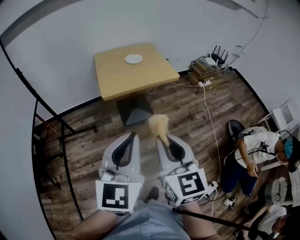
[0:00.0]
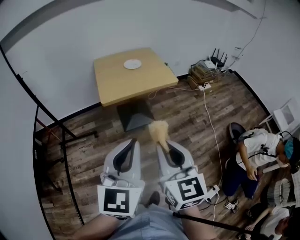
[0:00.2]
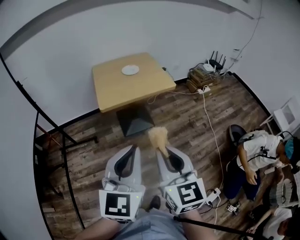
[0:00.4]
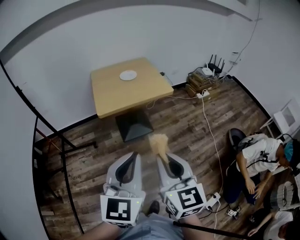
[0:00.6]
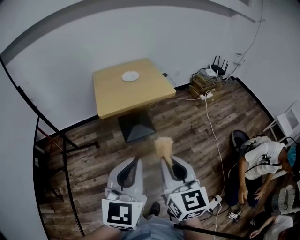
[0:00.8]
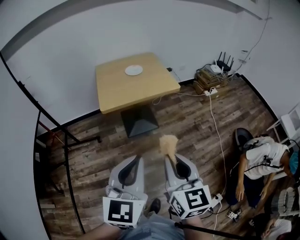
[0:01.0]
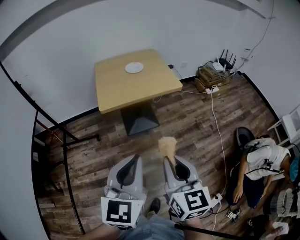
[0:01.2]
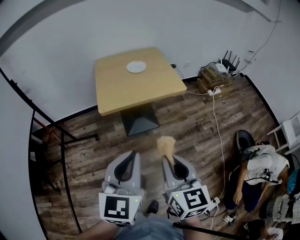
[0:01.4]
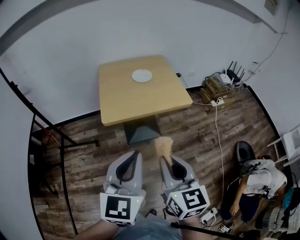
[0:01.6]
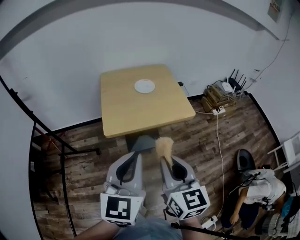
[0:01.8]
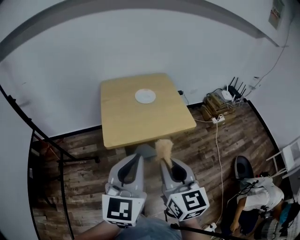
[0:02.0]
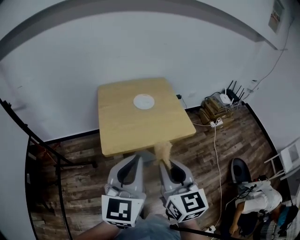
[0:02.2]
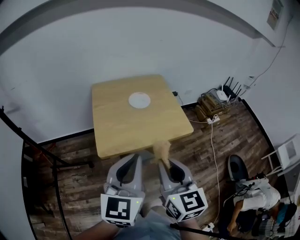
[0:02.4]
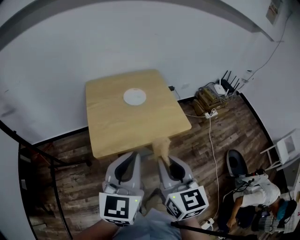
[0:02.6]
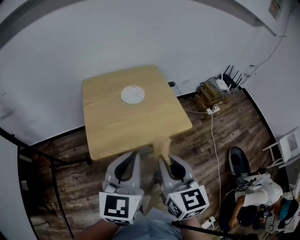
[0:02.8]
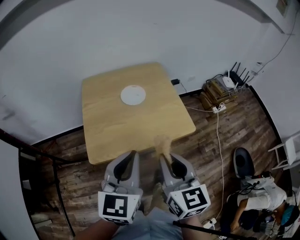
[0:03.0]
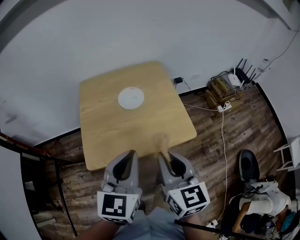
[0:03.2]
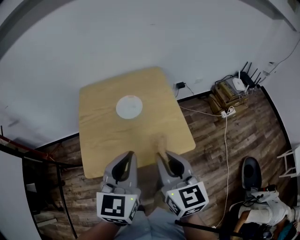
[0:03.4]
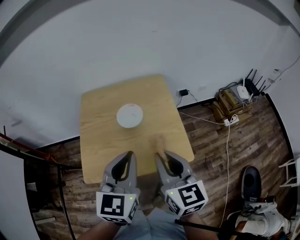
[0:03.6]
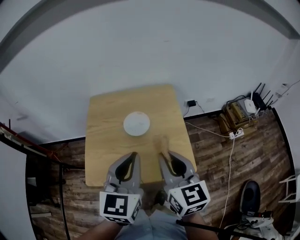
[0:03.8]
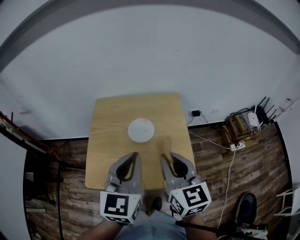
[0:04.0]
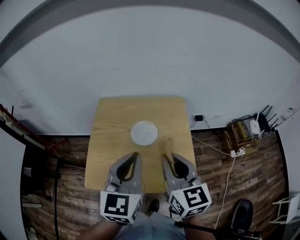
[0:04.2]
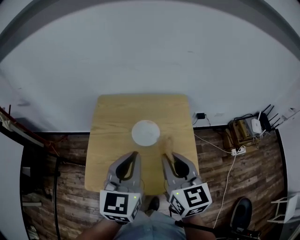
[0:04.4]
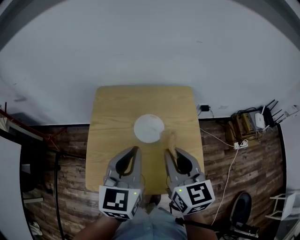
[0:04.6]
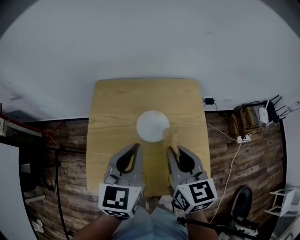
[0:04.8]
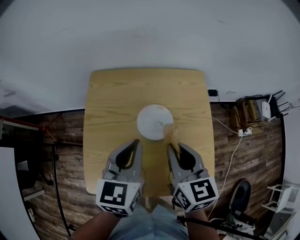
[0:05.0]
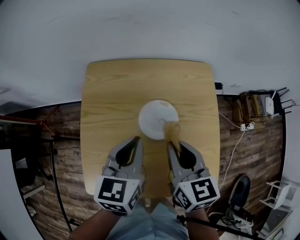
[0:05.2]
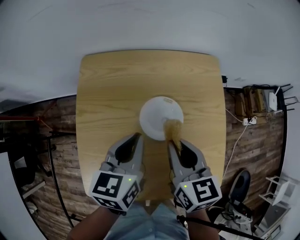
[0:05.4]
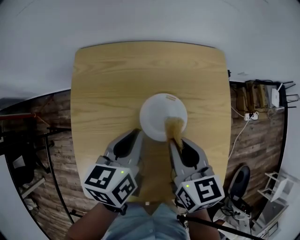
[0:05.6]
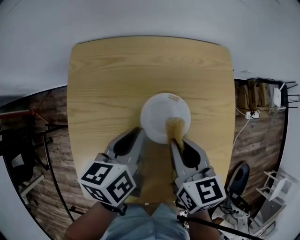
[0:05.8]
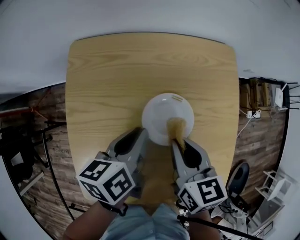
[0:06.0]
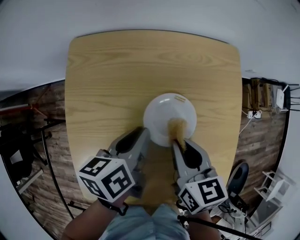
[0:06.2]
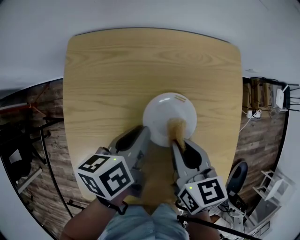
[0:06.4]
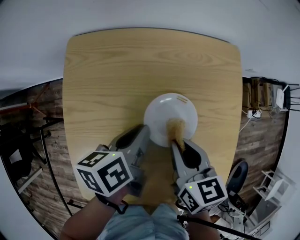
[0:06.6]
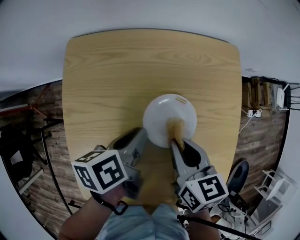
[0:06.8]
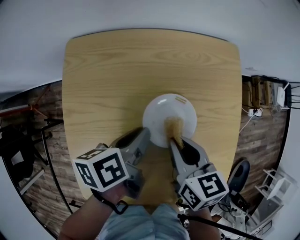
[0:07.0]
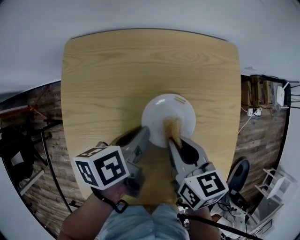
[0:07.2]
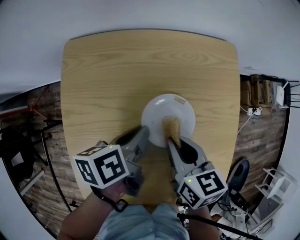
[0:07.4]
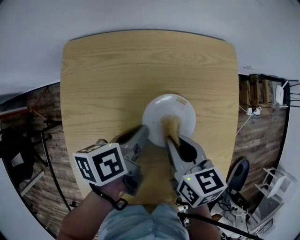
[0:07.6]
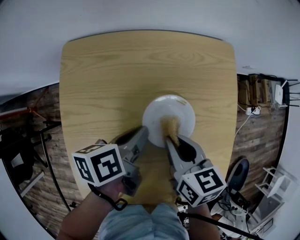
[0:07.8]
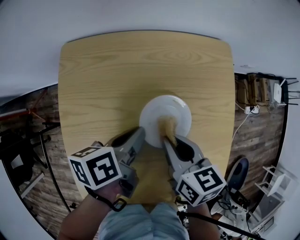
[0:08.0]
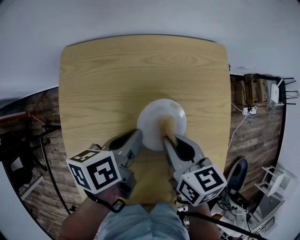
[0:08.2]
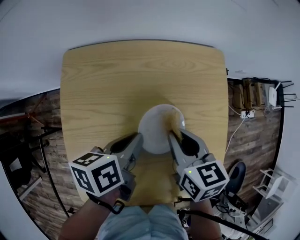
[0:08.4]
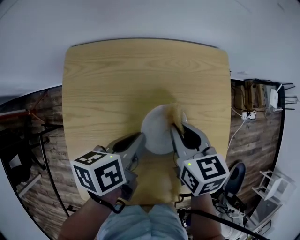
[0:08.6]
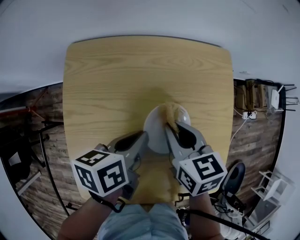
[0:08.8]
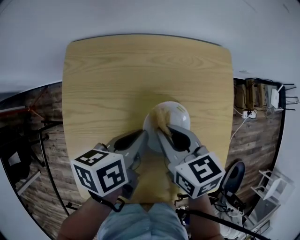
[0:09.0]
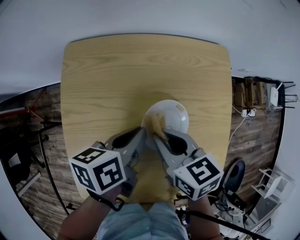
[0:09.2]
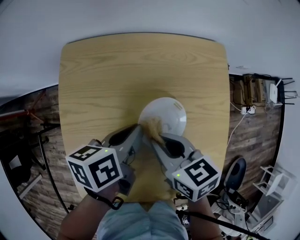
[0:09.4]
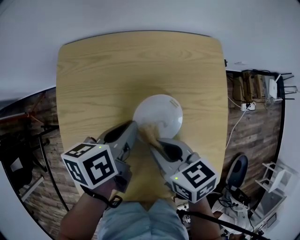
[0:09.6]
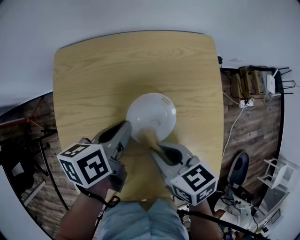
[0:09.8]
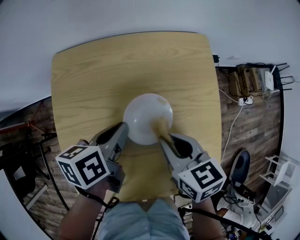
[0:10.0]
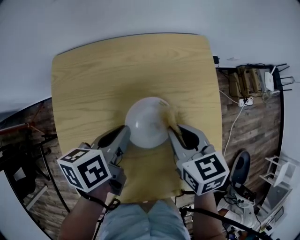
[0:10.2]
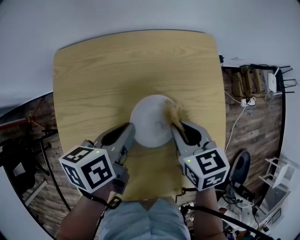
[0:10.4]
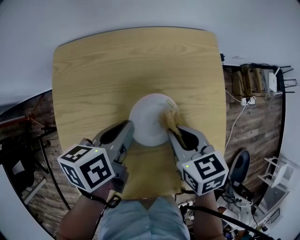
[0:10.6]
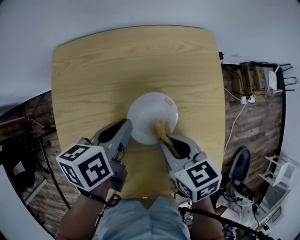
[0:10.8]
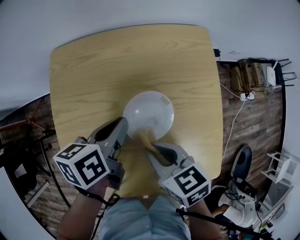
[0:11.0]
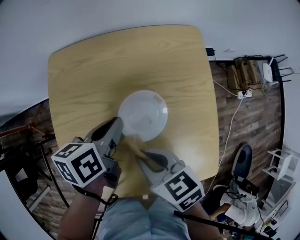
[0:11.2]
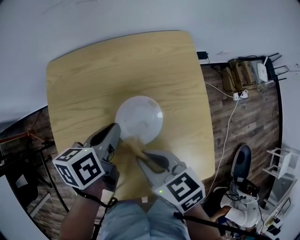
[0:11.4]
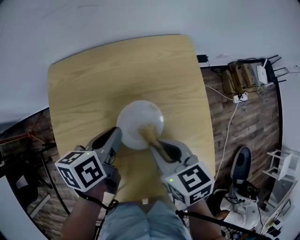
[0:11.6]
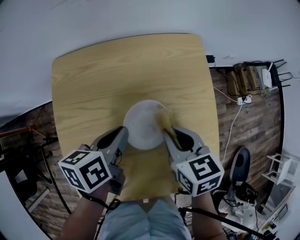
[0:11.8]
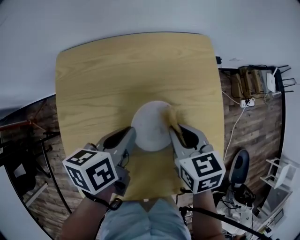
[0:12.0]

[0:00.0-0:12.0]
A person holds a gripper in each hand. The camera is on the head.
0:00.0 to 0:01.6: The two grippers go approximately 15 cm forward.
0:01.6 to 0:03.0: The two grippers go roughly 25 cm forward.
0:03.0 to 0:04.4: Both grippers travel together forward, some 25 cm.
0:04.4 to 0:06.0: The two grippers go some 25 cm downward and forward. The left gripper rotates around the line of its fingers by some 40 degrees, counterclockwise from behind; the right gripper changes its angle by some 30 degrees.
0:06.0 to 0:09.0: There are only small adjustments of the grippers.
0:09.0 to 0:10.4: The right gripper is displaced to the right by some 10 cm.
0:10.4 to 0:12.0: The right gripper moves about 10 cm backward and comes back.

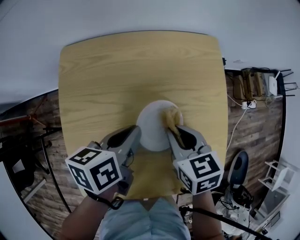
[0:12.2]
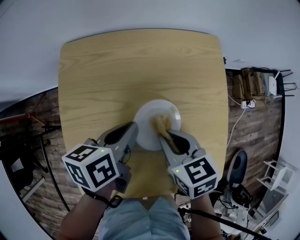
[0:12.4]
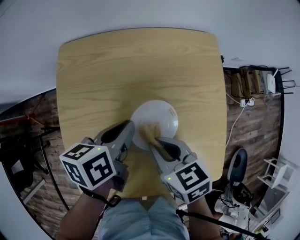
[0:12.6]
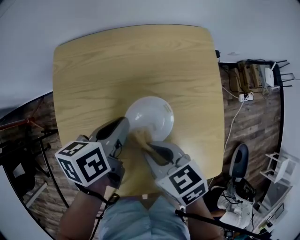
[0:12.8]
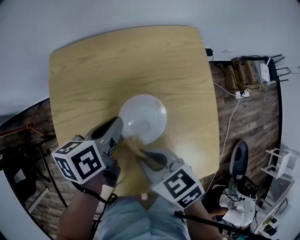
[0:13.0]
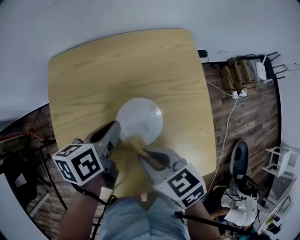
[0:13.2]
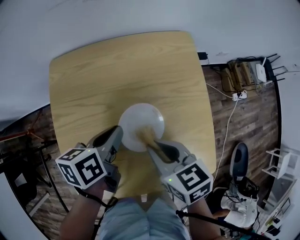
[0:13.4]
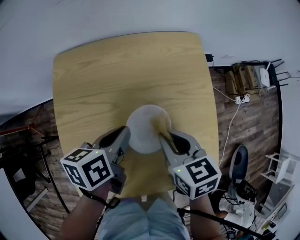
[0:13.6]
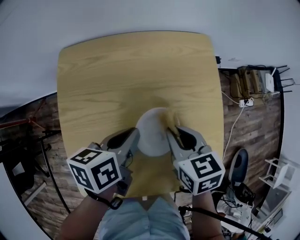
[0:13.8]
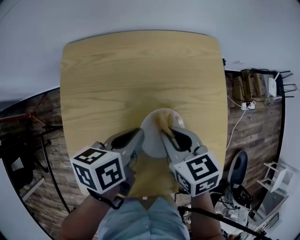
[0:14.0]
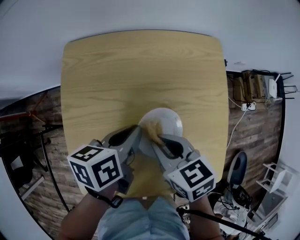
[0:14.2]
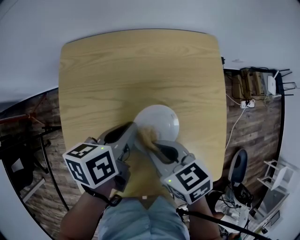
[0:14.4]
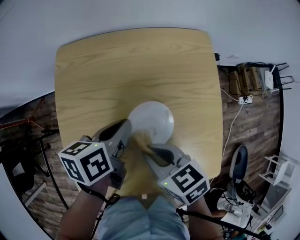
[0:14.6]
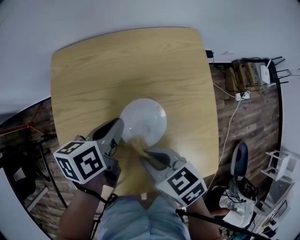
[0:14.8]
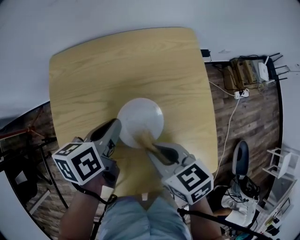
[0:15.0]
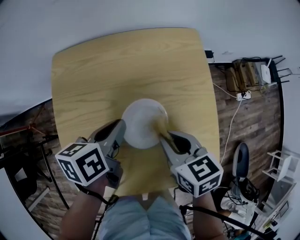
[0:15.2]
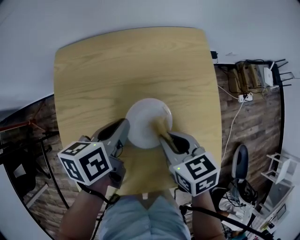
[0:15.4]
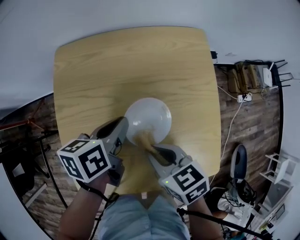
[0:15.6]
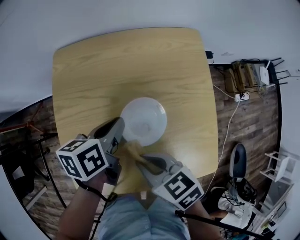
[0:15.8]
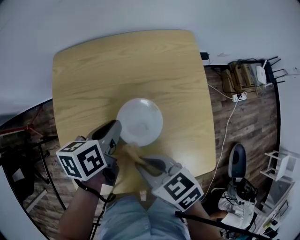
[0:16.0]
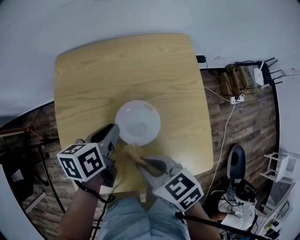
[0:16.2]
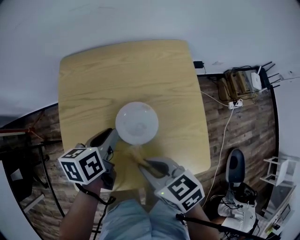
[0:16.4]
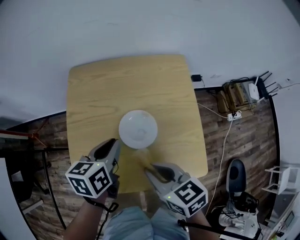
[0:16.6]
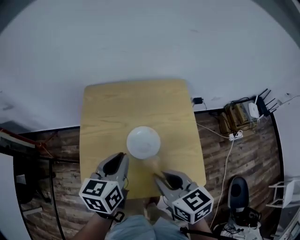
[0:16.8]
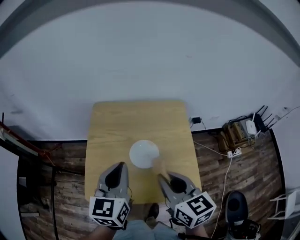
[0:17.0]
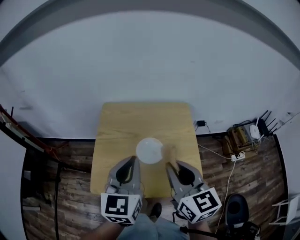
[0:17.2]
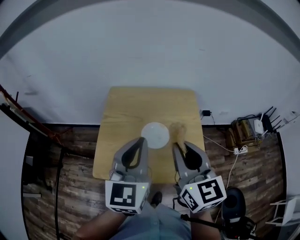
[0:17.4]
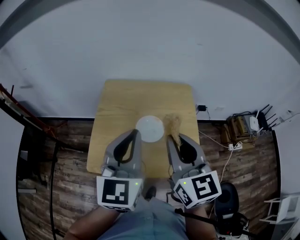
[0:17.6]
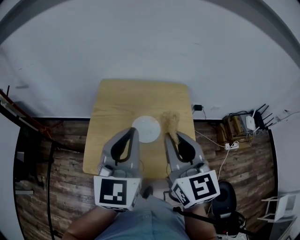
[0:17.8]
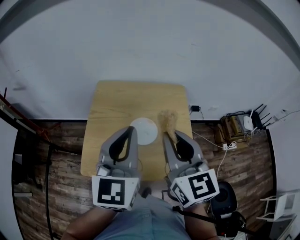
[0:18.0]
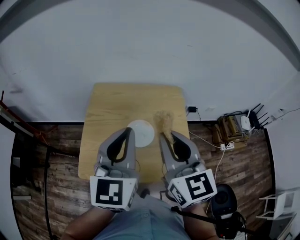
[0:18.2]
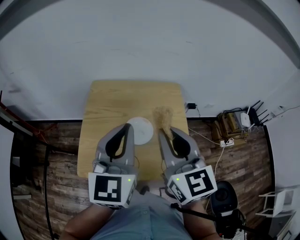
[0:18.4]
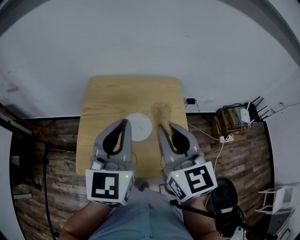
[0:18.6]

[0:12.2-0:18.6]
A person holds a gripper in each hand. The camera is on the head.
0:12.2 to 0:13.8: The right gripper travels backward and back again, some 10 cm each way.
0:15.4 to 0:17.0: The grippers both shift upward and backward by approximately 20 cm. The left gripper rotates roughly 50 degrees, while the right gripper turns by roughly 30 degrees.
0:17.0 to 0:18.6: Both grippers travel together upward, about 10 cm. The right gripper changes its angle by approximately 20 degrees.

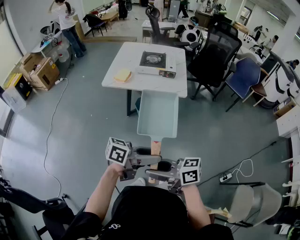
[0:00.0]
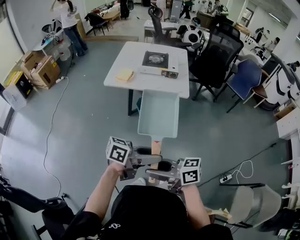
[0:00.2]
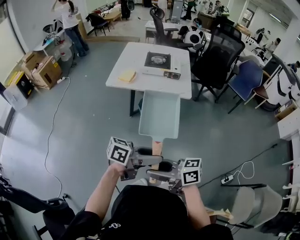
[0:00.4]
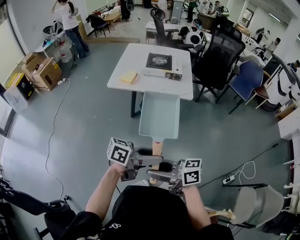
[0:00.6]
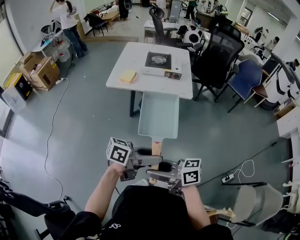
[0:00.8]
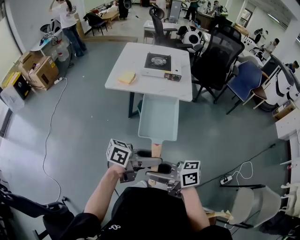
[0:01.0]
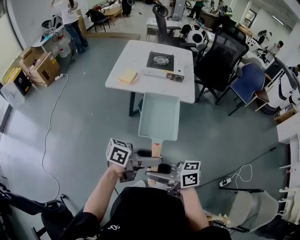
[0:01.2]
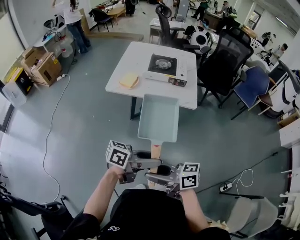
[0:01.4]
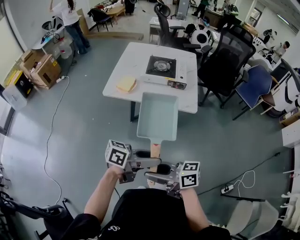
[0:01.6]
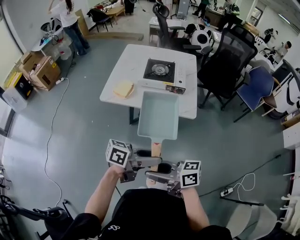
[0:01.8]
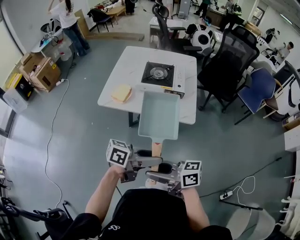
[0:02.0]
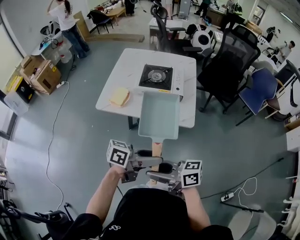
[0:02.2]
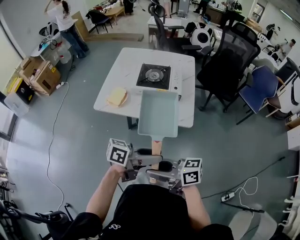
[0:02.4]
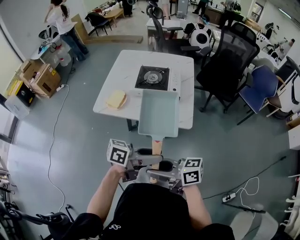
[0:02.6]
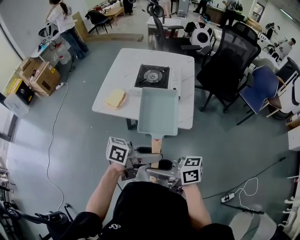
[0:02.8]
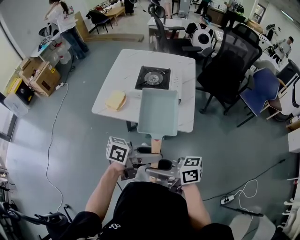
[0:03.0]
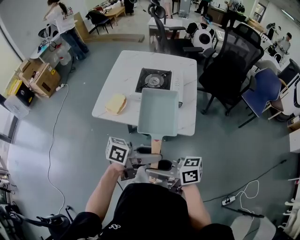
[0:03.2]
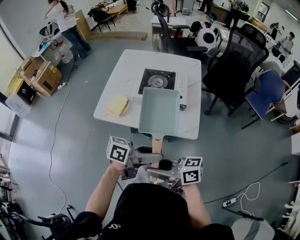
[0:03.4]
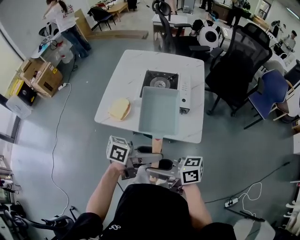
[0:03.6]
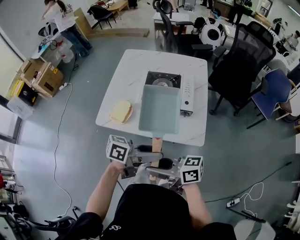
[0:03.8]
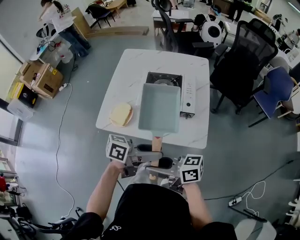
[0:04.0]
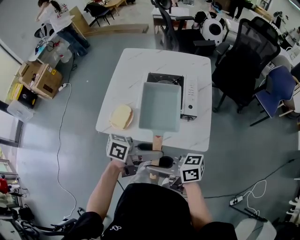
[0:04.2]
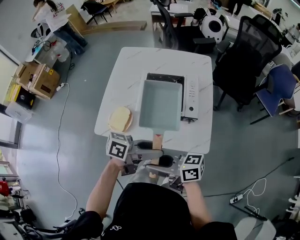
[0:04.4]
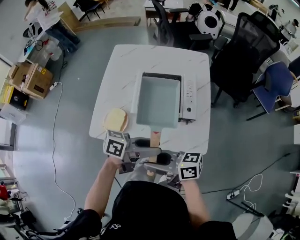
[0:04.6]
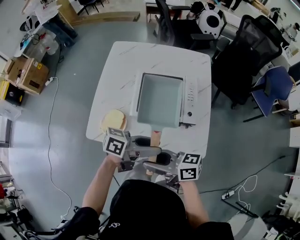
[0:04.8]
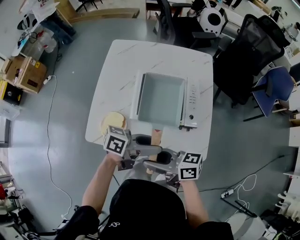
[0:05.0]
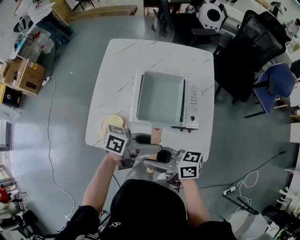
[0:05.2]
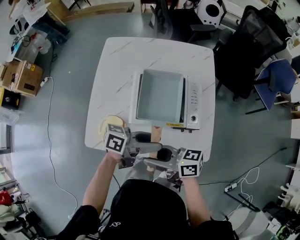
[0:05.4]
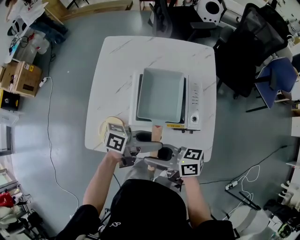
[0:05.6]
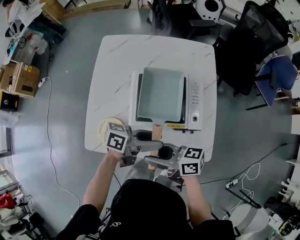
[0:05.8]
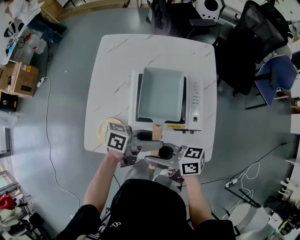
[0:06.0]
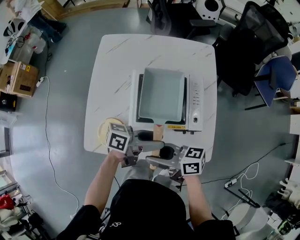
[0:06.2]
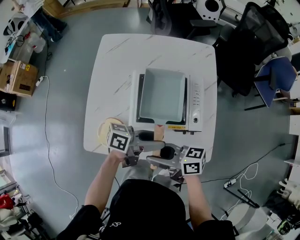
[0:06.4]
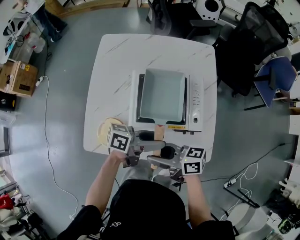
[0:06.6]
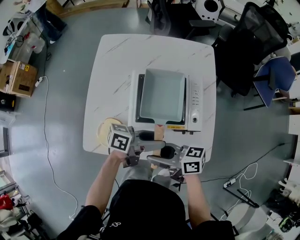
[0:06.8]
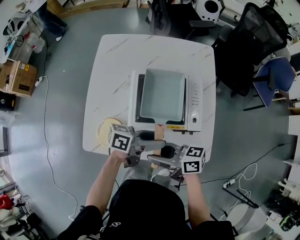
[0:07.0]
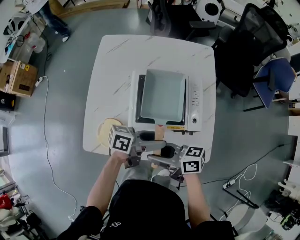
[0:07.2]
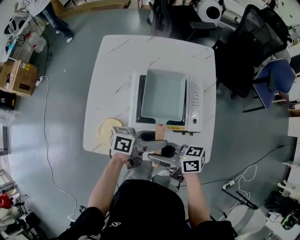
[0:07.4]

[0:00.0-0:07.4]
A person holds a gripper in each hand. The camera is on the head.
0:00.0 to 0:01.4: The right gripper shifts by about 10 cm. Meanwhile the left gripper changes place by approximately 10 cm.
0:01.4 to 0:03.0: The left gripper ends up approximately 25 cm from where it was, while the right gripper moves roughly 25 cm.
0:03.0 to 0:04.4: The left gripper ends up some 20 cm from where it was. Meanwhile the right gripper ends up some 20 cm from where it was.
0:04.4 to 0:06.0: The right gripper changes place by approximately 15 cm. The left gripper shifts by roughly 15 cm.
0:06.0 to 0:07.4: The grippers move only a little.
